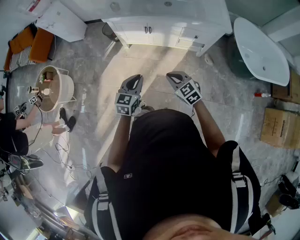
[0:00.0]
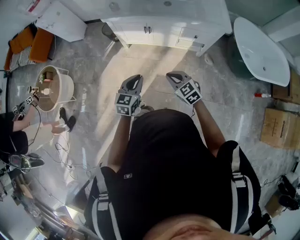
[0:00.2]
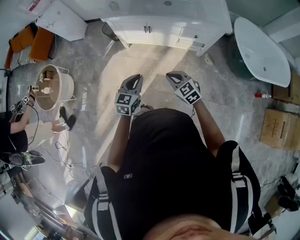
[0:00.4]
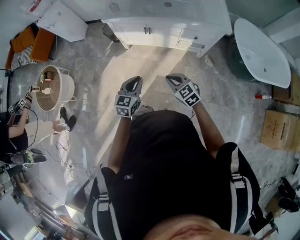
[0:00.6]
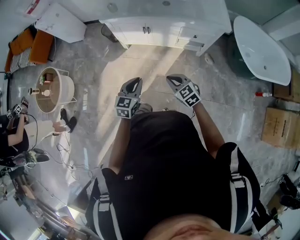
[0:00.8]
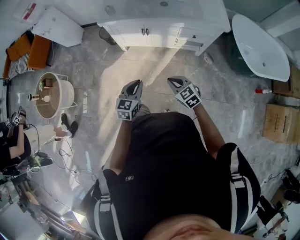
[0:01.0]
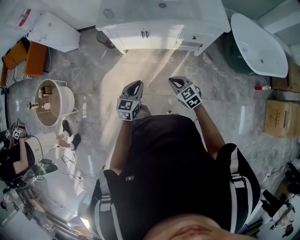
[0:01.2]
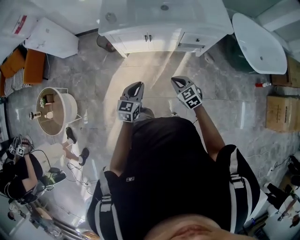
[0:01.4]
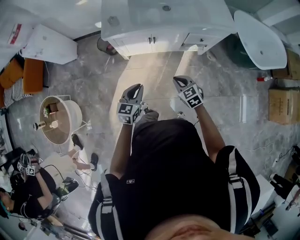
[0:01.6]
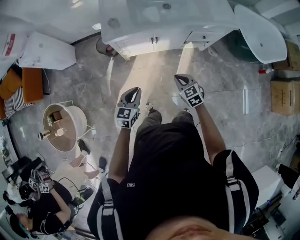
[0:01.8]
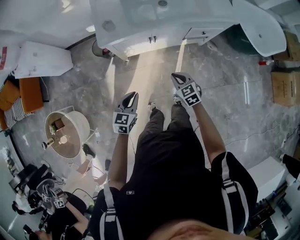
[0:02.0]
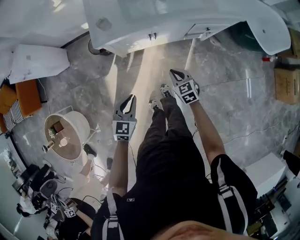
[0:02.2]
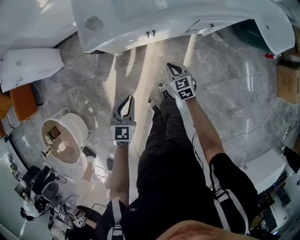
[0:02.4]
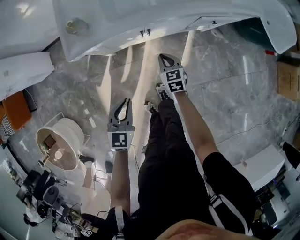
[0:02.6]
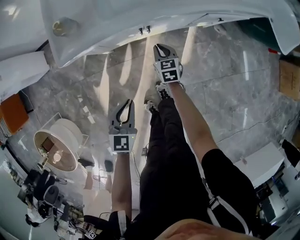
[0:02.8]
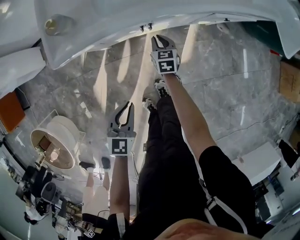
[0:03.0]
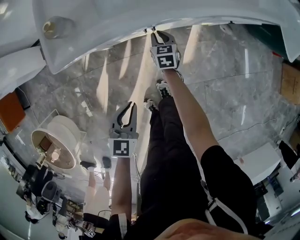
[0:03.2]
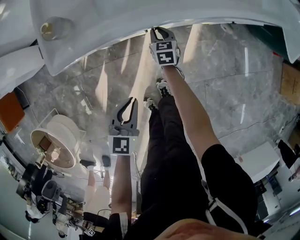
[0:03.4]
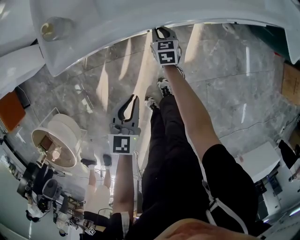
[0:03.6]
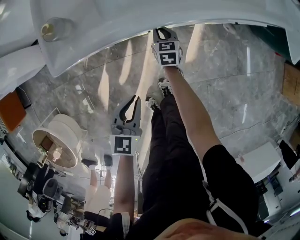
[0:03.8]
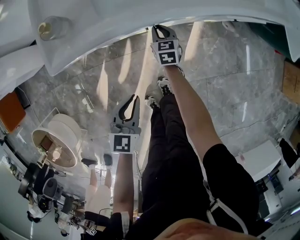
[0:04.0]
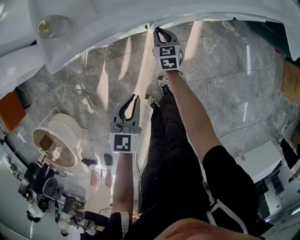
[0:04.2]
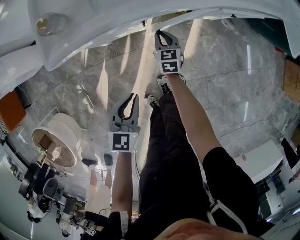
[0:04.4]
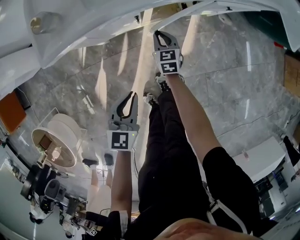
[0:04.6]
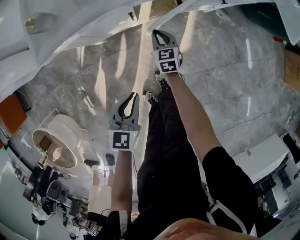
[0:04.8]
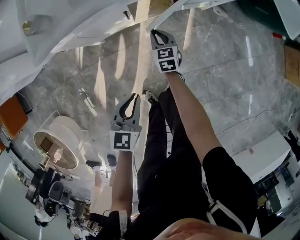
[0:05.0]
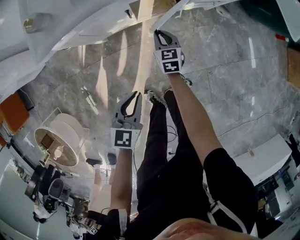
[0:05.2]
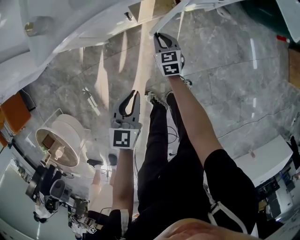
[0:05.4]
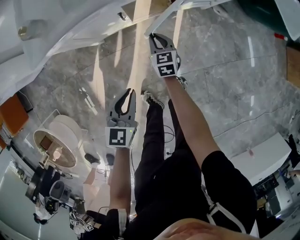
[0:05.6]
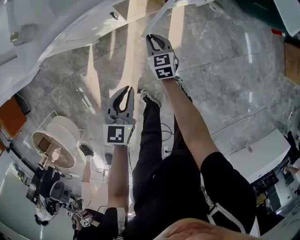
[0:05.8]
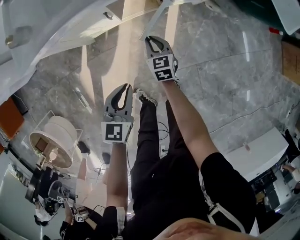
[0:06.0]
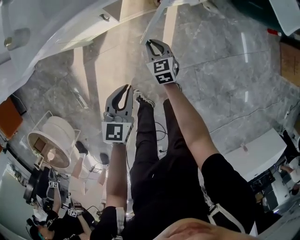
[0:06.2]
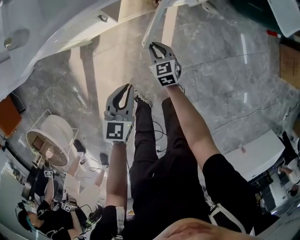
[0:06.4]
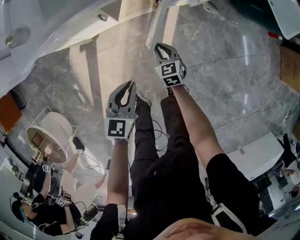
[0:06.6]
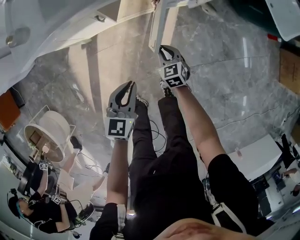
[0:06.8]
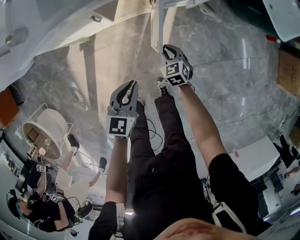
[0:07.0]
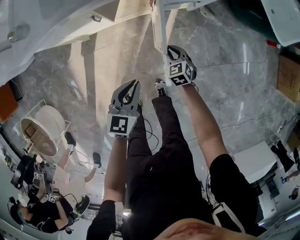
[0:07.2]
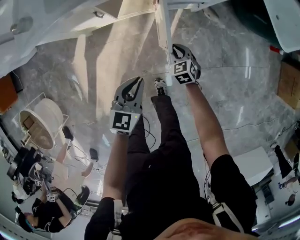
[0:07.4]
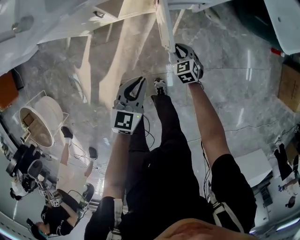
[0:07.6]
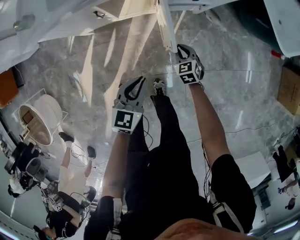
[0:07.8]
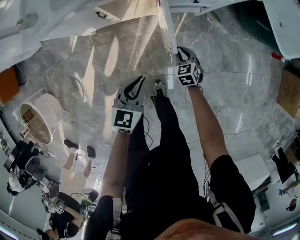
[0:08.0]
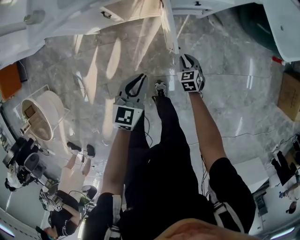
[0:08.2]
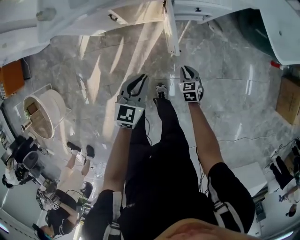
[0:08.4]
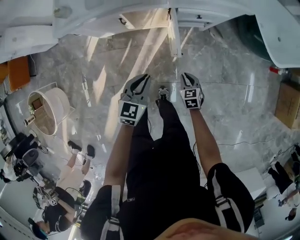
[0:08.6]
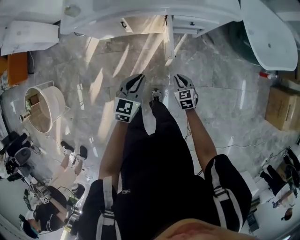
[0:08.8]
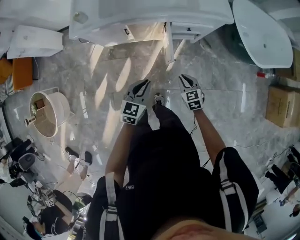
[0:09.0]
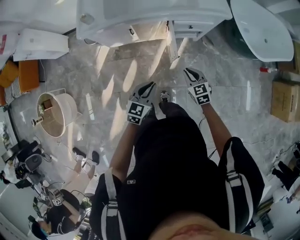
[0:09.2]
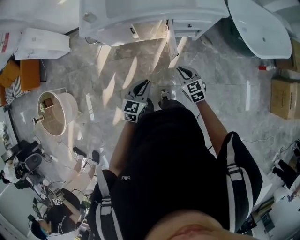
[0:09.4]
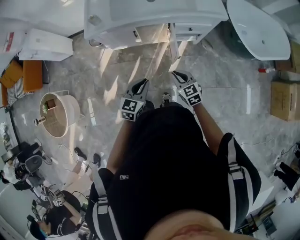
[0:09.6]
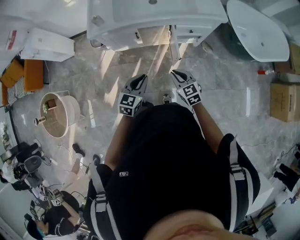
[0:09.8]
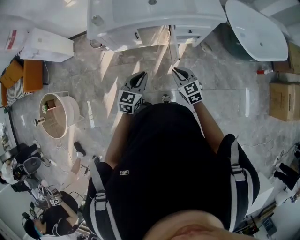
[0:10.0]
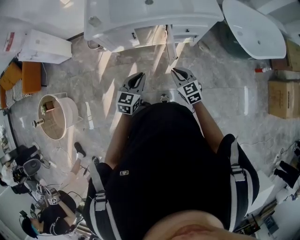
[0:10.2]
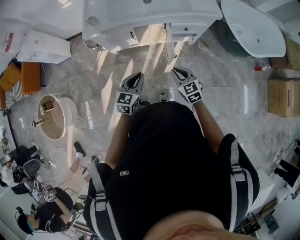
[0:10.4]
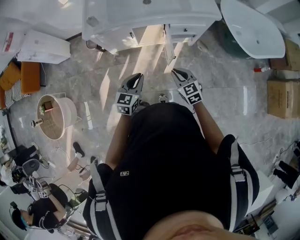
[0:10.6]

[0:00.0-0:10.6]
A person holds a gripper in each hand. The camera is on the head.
0:00.0 to 0:01.6: The left gripper is displaced forward and to the left by about 20 cm; the right gripper shifts roughly 15 cm forward, to the left and downward, and changes its angle by roughly 20 degrees.
0:01.6 to 0:03.0: The right gripper travels downward and forward by approximately 40 cm, and rotates about 40 degrees; the left gripper is displaced downward and forward by approximately 20 cm.
0:03.0 to 0:04.6: There are only small adjustments of the grippers.
0:04.6 to 0:06.0: The right gripper travels to the right and backward by roughly 10 cm. The left gripper heads to the right, covering some 10 cm.
0:06.0 to 0:07.6: The two grippers go approximately 20 cm to the right. The right gripper rotates about 30 degrees.
0:07.6 to 0:09.0: The right gripper travels upward and backward by roughly 25 cm; the left gripper shifts roughly 15 cm upward.
0:09.0 to 0:10.6: The left gripper goes approximately 10 cm to the left and upward, while the right gripper shifts some 15 cm upward and to the left.

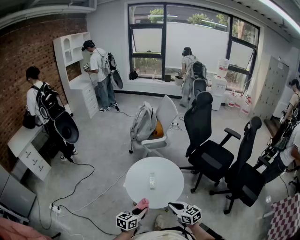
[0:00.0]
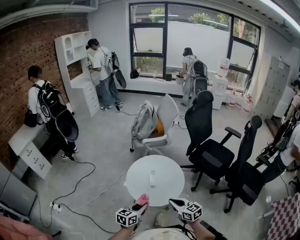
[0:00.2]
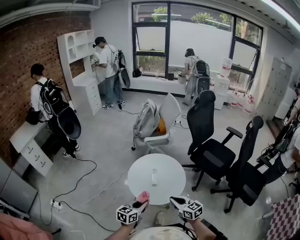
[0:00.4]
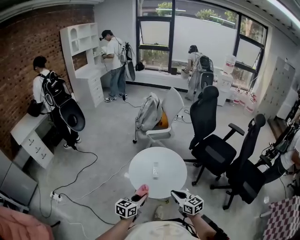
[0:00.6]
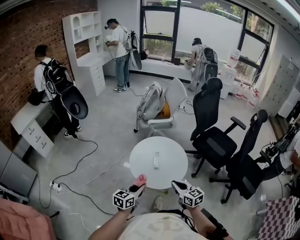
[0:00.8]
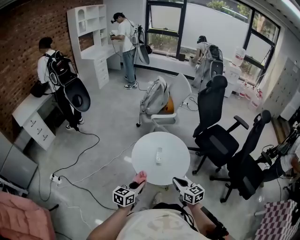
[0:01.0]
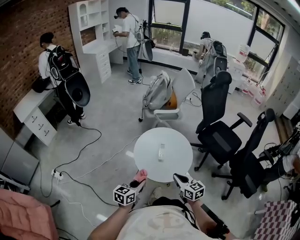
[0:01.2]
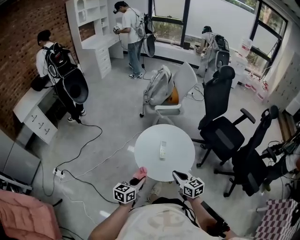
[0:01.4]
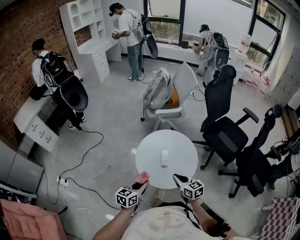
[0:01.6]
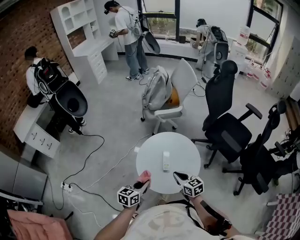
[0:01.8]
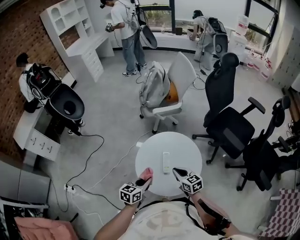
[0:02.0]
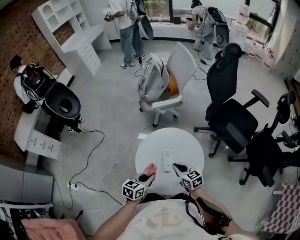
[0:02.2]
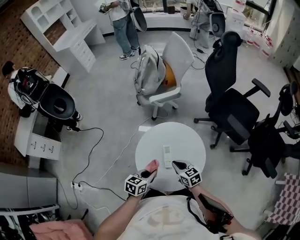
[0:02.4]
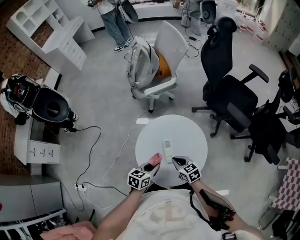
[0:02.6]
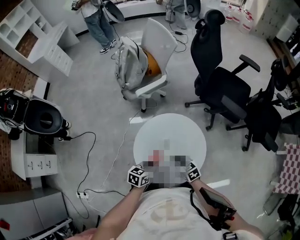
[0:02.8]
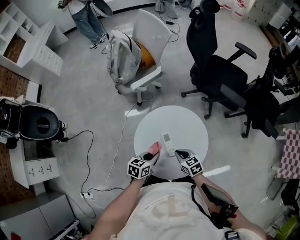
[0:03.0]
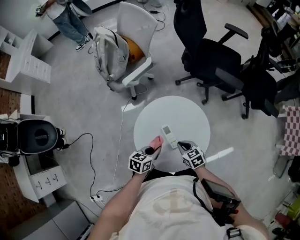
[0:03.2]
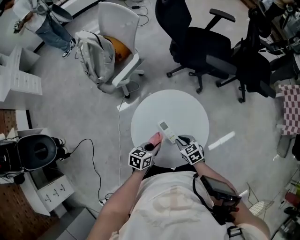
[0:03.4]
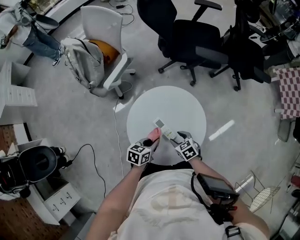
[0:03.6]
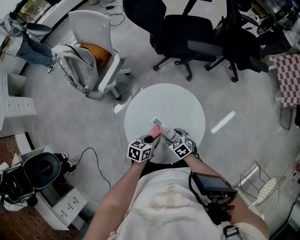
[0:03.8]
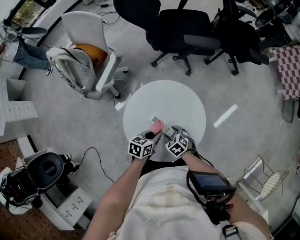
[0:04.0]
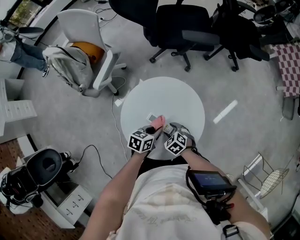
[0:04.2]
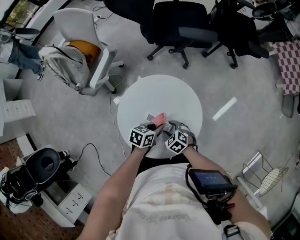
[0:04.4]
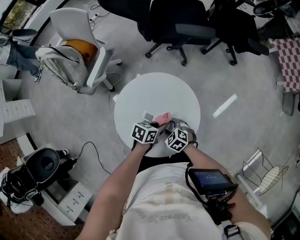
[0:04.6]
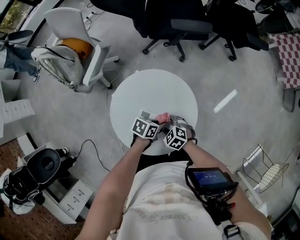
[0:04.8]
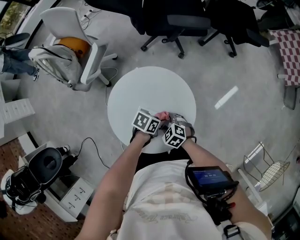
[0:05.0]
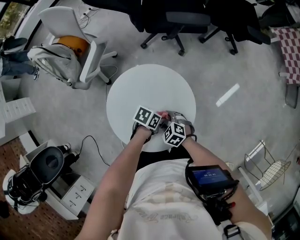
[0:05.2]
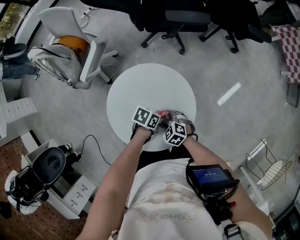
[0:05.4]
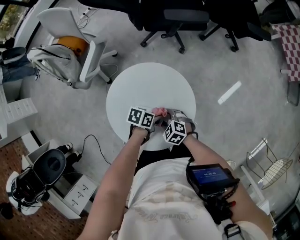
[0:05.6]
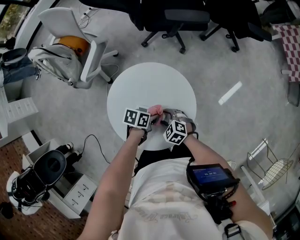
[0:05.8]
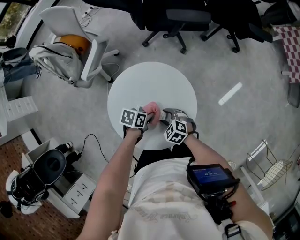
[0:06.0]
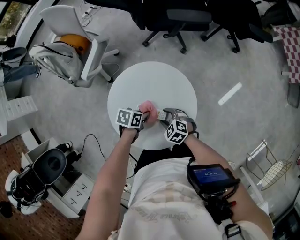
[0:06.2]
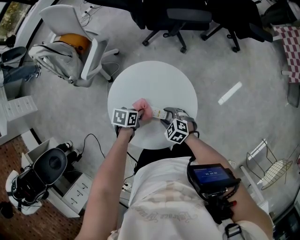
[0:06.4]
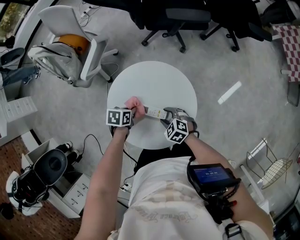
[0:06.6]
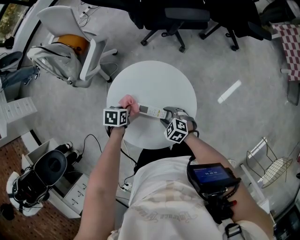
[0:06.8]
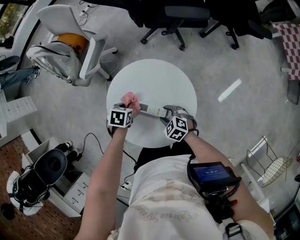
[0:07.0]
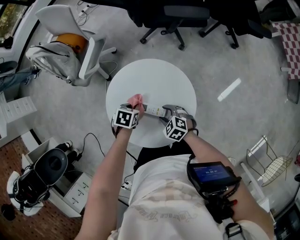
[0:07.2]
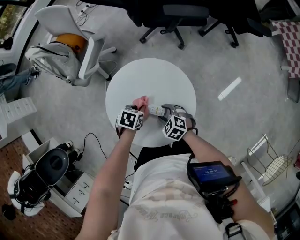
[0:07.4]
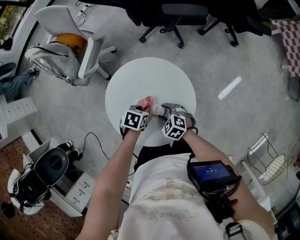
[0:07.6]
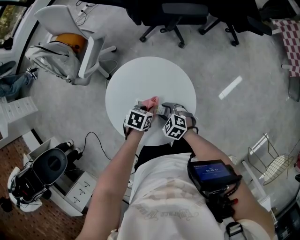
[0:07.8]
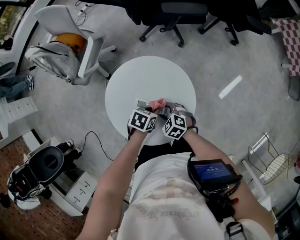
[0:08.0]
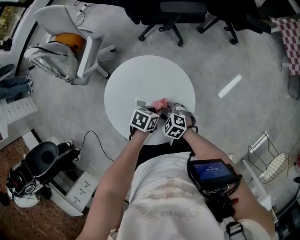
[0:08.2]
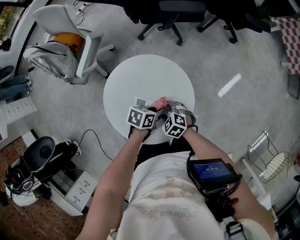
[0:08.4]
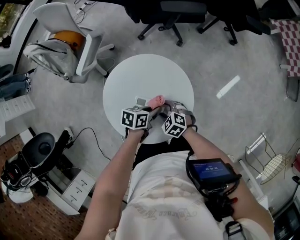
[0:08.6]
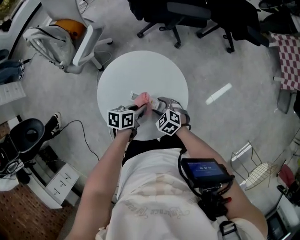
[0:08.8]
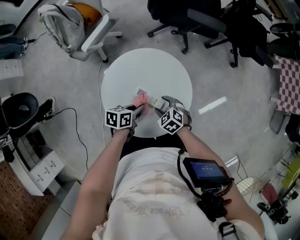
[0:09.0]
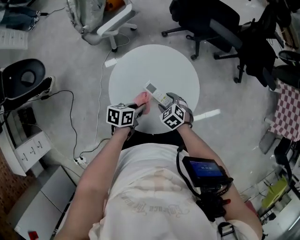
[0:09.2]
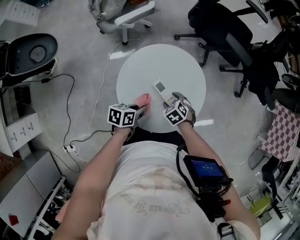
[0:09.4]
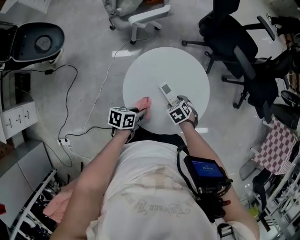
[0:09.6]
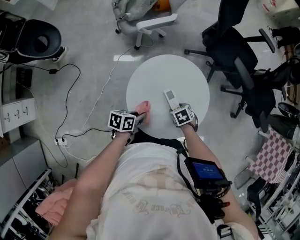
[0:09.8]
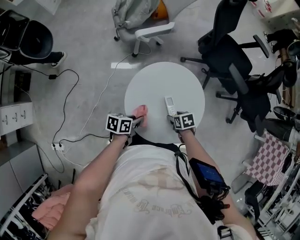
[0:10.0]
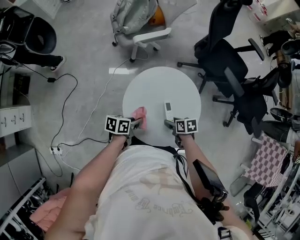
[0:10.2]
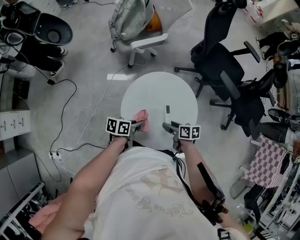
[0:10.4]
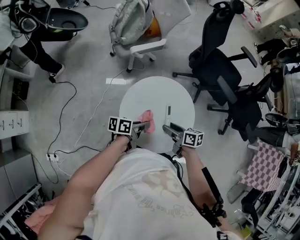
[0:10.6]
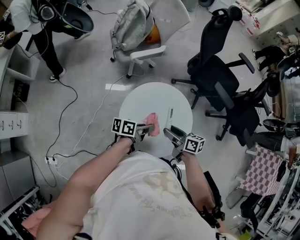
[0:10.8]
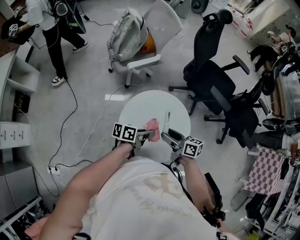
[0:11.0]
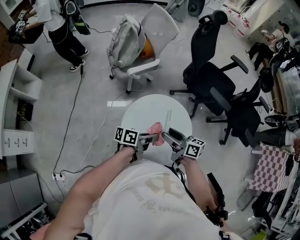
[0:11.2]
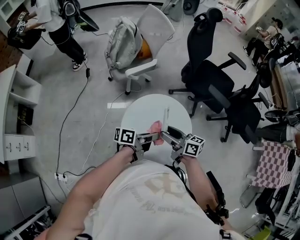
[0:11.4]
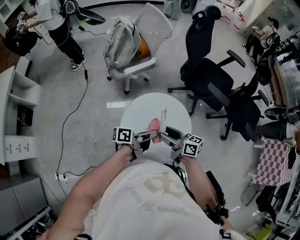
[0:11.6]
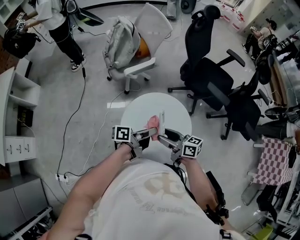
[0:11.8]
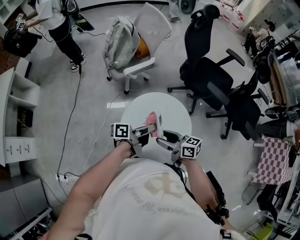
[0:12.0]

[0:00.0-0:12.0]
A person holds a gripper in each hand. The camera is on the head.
0:00.0 to 0:01.6: The right gripper is displaced forward by some 10 cm; the left gripper moves to the left and forward, about 10 cm.
0:01.6 to 0:03.0: The grippers both shift forward and downward by about 25 cm. The right gripper rotates about 20 degrees, while the left gripper changes its angle by approximately 30 degrees.
0:03.0 to 0:04.4: The right gripper travels downward by approximately 10 cm, rotates about 20 degrees, and opens its fingers. Meanwhile the left gripper moves about 10 cm, and changes its angle by roughly 40 degrees.
0:06.0 to 0:07.6: The left gripper turns by some 20 degrees.
0:07.6 to 0:09.0: The left gripper changes place by some 5 cm, and turns by approximately 40 degrees.
0:09.0 to 0:10.4: The left gripper changes place by about 10 cm, and swivels about 30 degrees. Meanwhile the right gripper moves upward, some 5 cm, and swivels roughly 50 degrees.
0:10.4 to 0:12.0: Both grippers travel together upward, roughly 15 cm. The left gripper tips its fingers upward by some 30 degrees; the right gripper swivels about 40 degrees.

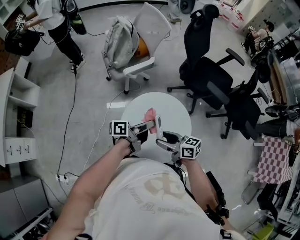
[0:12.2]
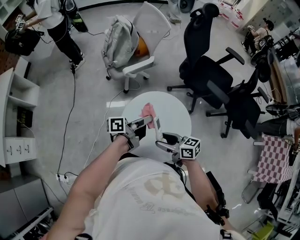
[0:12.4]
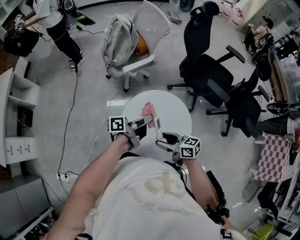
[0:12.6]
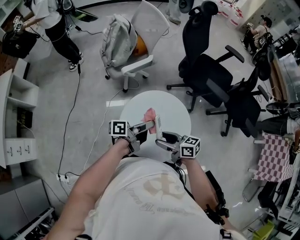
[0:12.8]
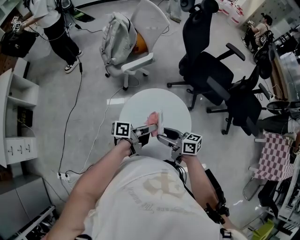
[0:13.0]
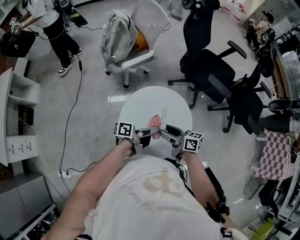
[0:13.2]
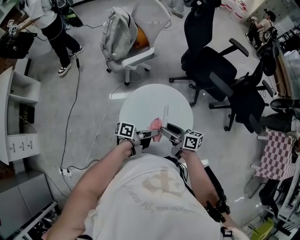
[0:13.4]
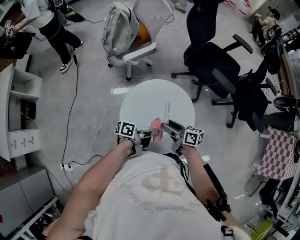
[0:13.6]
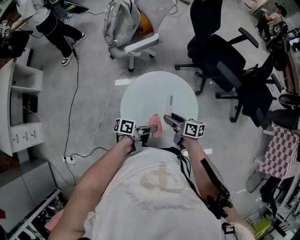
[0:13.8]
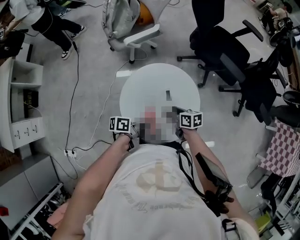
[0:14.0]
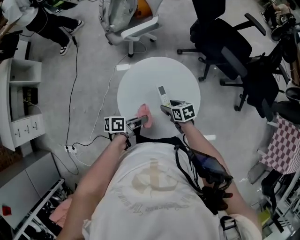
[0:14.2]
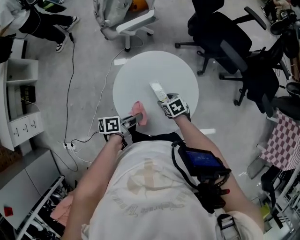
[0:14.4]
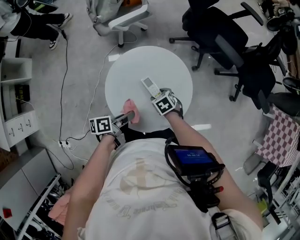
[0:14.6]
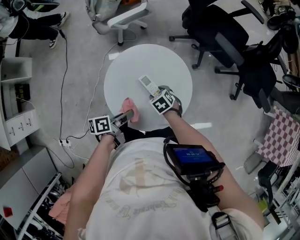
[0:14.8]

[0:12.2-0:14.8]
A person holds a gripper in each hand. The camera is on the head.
0:12.2 to 0:13.4: The left gripper moves downward, roughly 10 cm, while the right gripper changes place by some 5 cm.
0:13.4 to 0:14.8: The left gripper goes roughly 10 cm downward, and rotates about 30 degrees; the right gripper shifts some 20 cm downward, and points its fingers about 50 degrees further downward.
